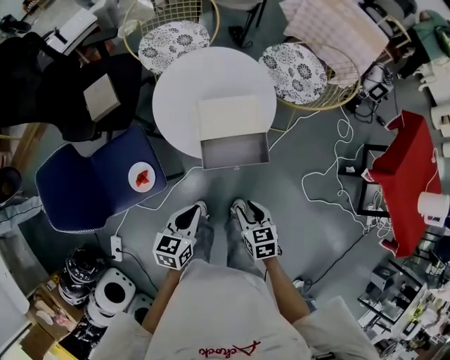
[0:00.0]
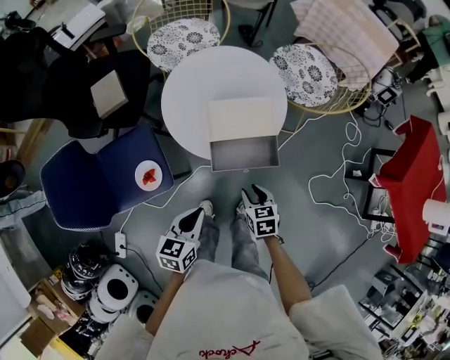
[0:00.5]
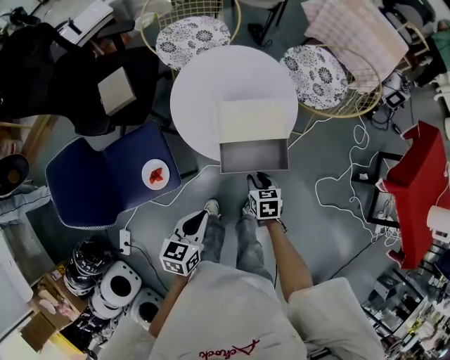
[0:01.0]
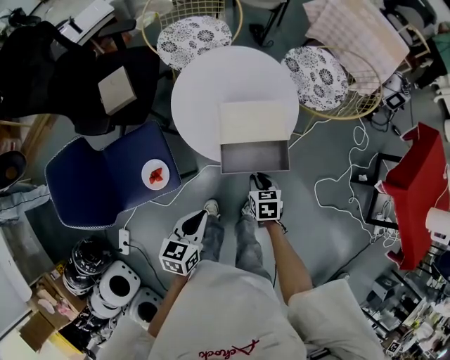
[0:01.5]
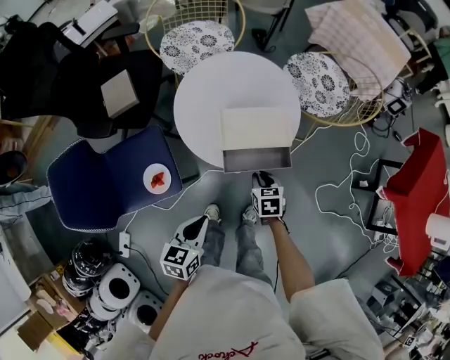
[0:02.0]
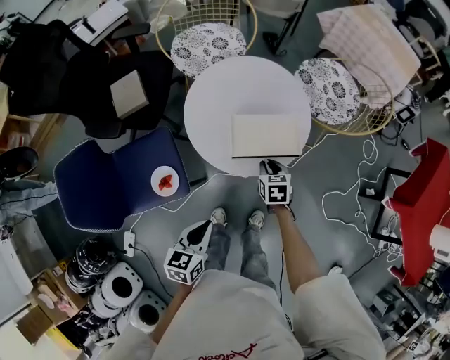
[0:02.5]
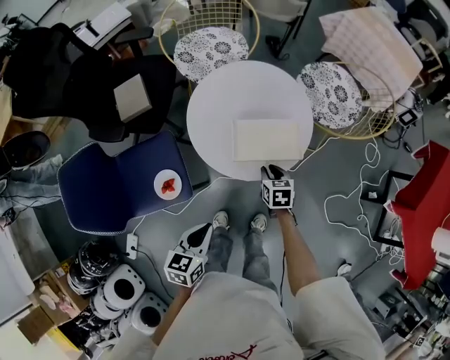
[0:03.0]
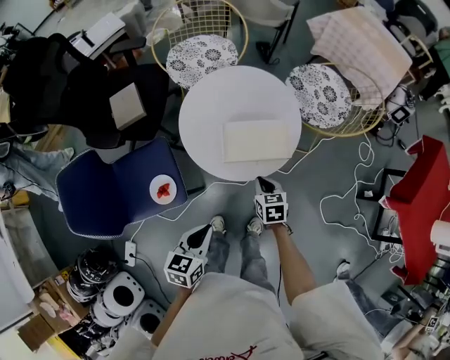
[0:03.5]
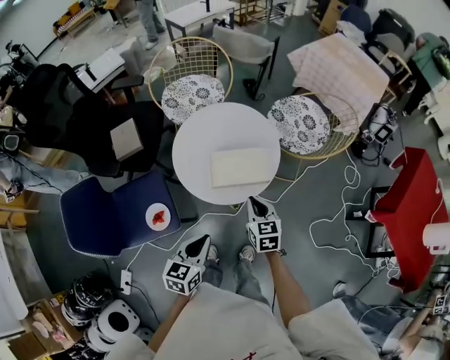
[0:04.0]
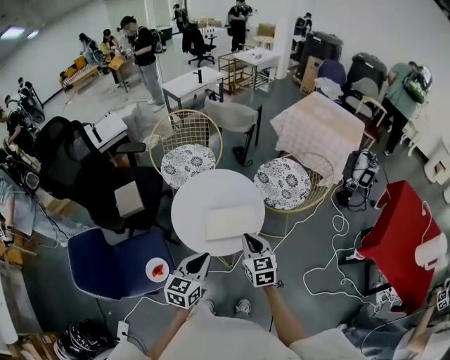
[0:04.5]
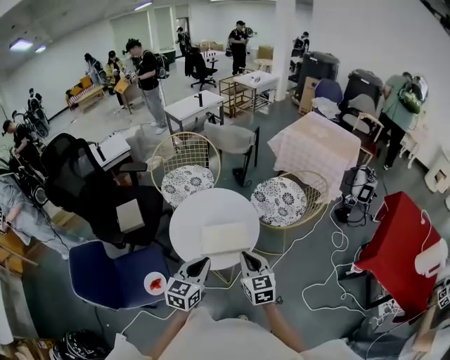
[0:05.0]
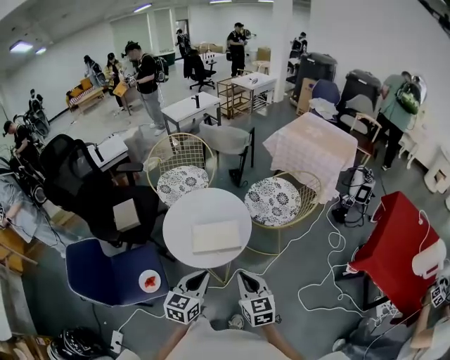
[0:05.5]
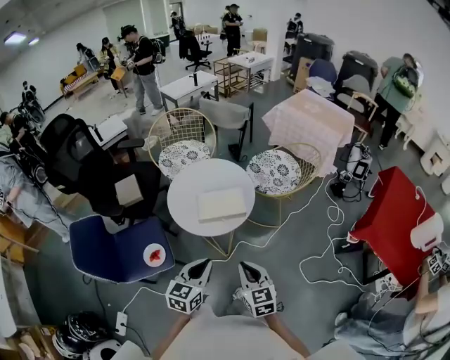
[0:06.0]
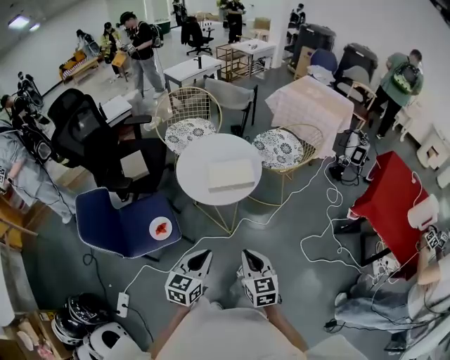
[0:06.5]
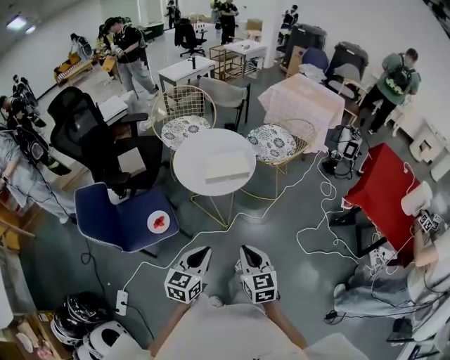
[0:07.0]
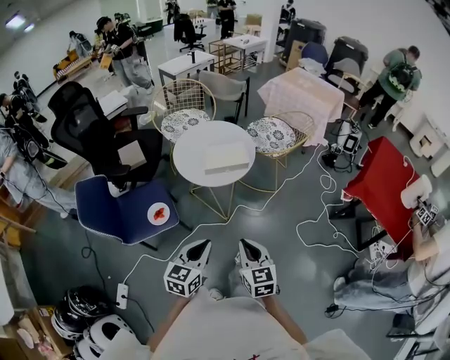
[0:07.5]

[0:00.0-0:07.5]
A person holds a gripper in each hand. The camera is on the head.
0:00.0 to 0:02.0: The right gripper shifts approximately 15 cm forward and downward.
0:02.0 to 0:04.0: The right gripper goes approximately 15 cm upward, and turns by approximately 20 degrees. Meanwhile the left gripper moves upward, approximately 5 cm.
0:04.0 to 0:05.5: The right gripper goes roughly 20 cm upward, backward and to the right. Meanwhile the left gripper travels to the right and upward by approximately 15 cm.
0:05.5 to 0:07.5: Both grippers move backward, some 25 cm.

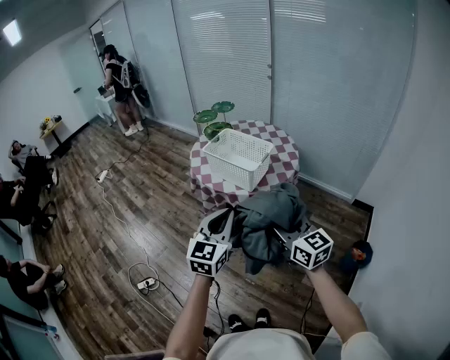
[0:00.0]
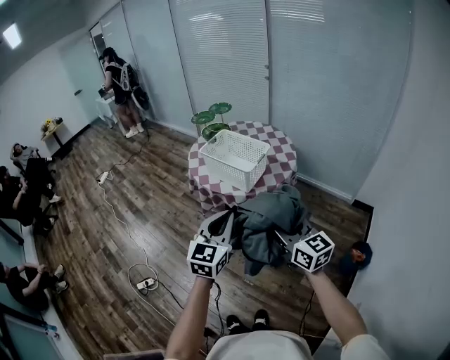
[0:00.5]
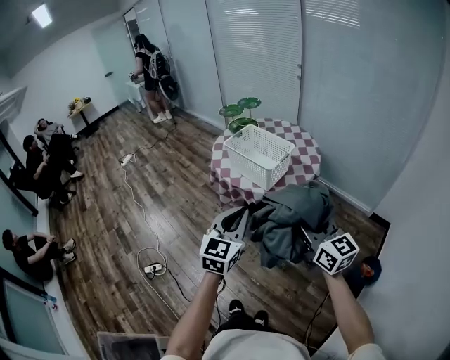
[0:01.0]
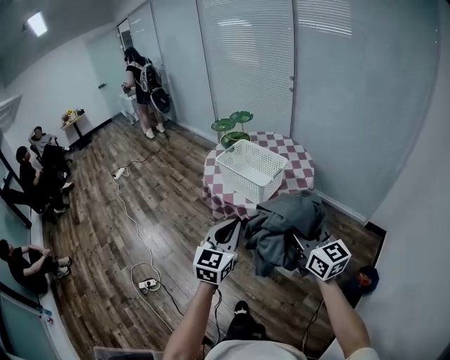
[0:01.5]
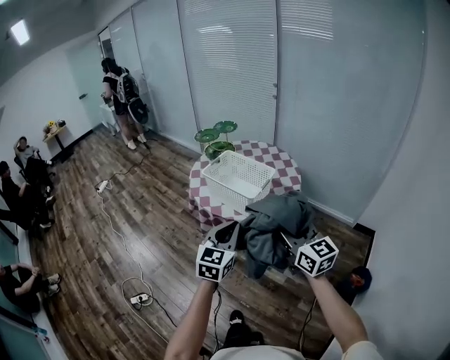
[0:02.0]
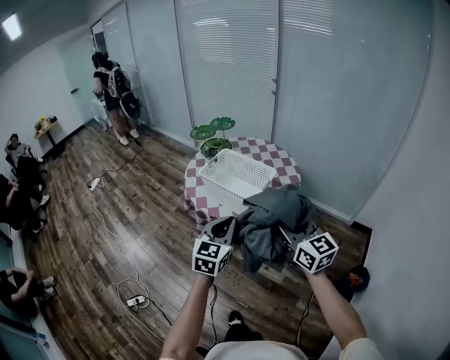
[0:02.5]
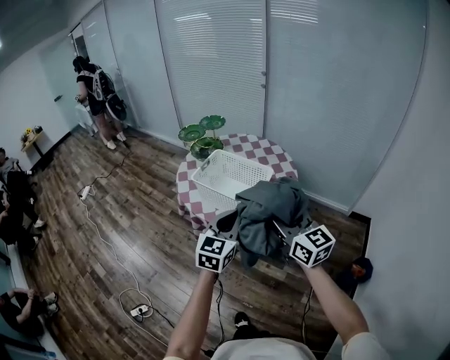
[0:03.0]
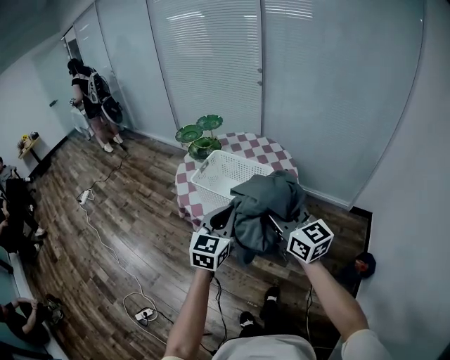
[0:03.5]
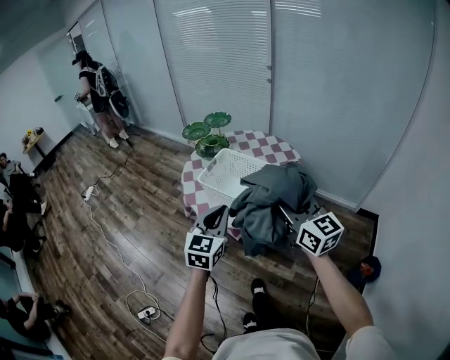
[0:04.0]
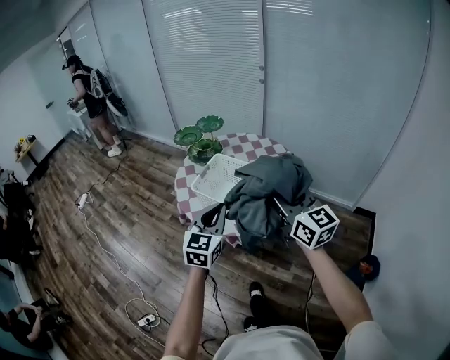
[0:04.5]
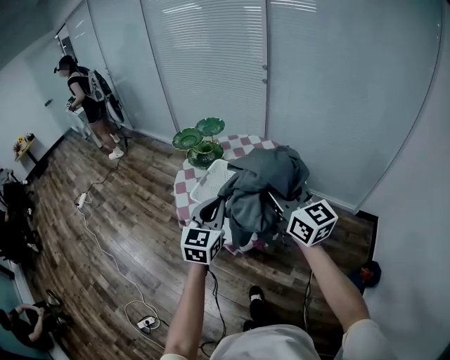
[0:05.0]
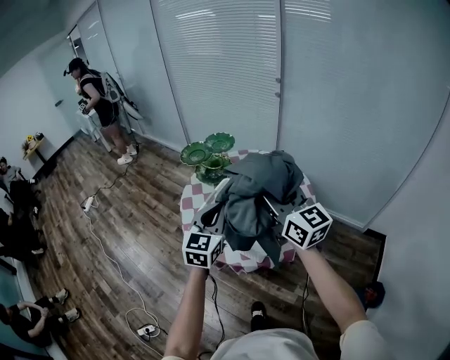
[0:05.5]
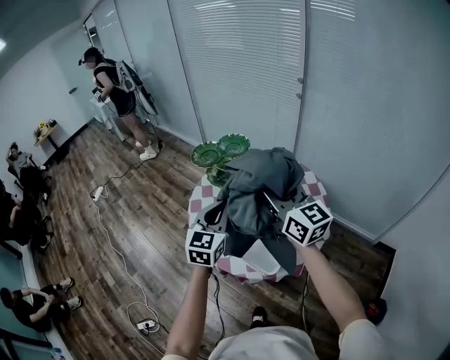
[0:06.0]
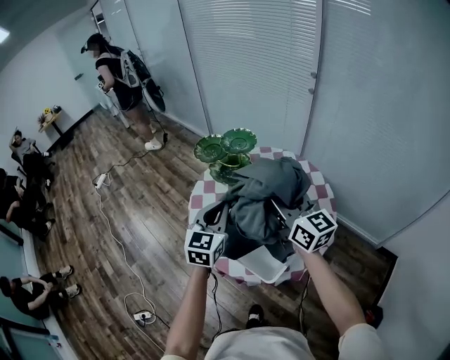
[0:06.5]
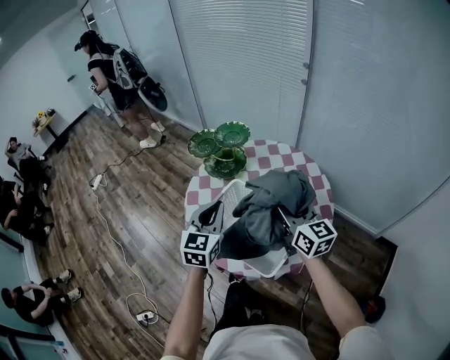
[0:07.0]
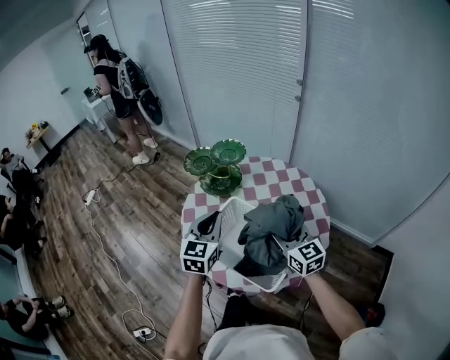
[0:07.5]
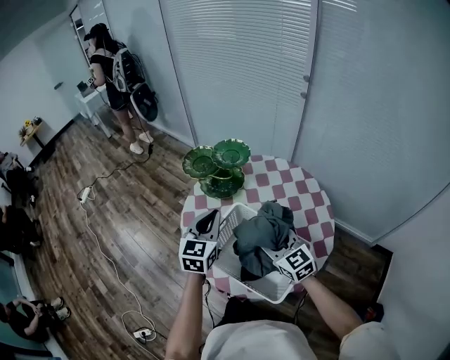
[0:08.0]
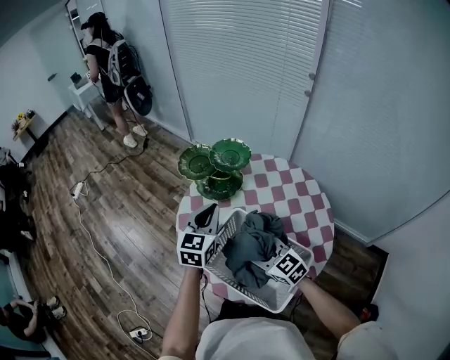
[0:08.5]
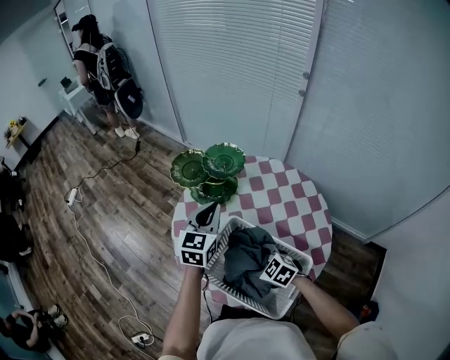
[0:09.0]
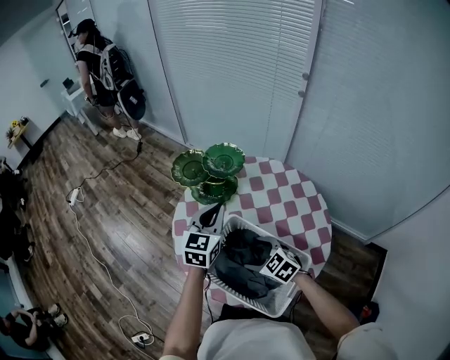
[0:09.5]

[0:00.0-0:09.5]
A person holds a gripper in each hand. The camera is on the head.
0:00.0 to 0:02.0: The right gripper travels forward and to the right by approximately 10 cm; the left gripper goes some 10 cm forward.
0:02.0 to 0:04.0: The right gripper heads forward, covering approximately 15 cm, while the left gripper travels forward and to the left by some 20 cm.
0:04.0 to 0:05.5: Both grippers move forward, about 20 cm.
0:05.5 to 0:07.5: The right gripper moves downward and forward, some 25 cm. Meanwhile the left gripper travels forward and downward by approximately 15 cm.
0:07.5 to 0:09.5: The left gripper shifts about 15 cm forward; the right gripper shifts approximately 15 cm downward and to the left, points its fingers approximately 30 degrees further downward, and opens.

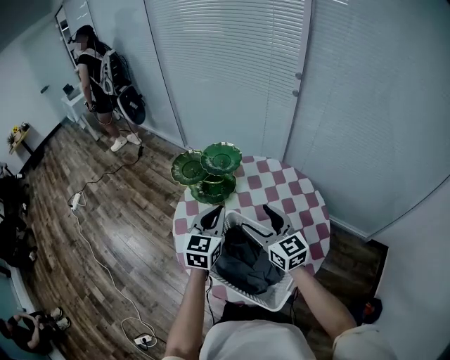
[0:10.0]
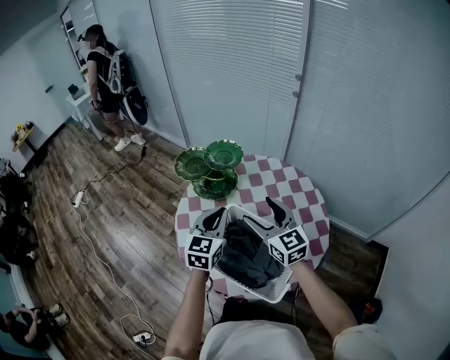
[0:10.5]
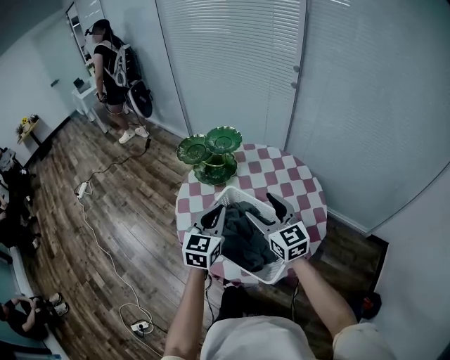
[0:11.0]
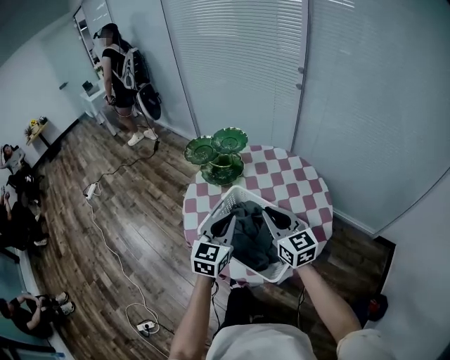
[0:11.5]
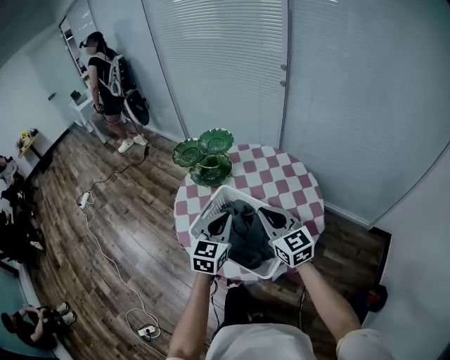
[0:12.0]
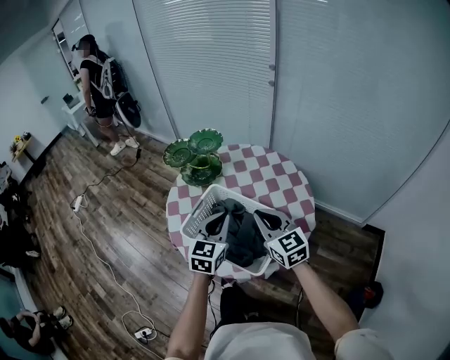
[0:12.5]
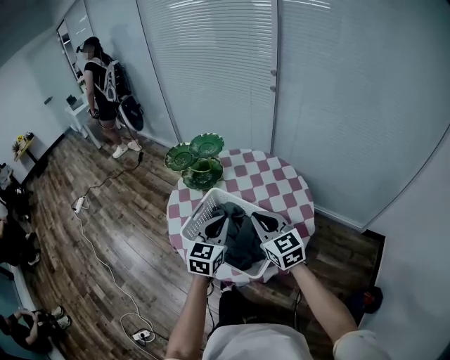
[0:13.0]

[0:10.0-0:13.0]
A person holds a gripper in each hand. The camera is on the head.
0:10.0 to 0:11.5: Both grippers travel together backward, roughly 10 cm. The right gripper closes.
0:11.5 to 0:13.0: The left gripper moves about 5 cm.

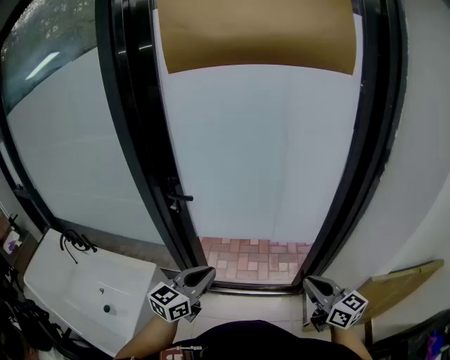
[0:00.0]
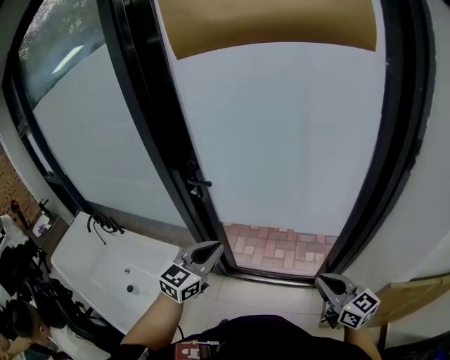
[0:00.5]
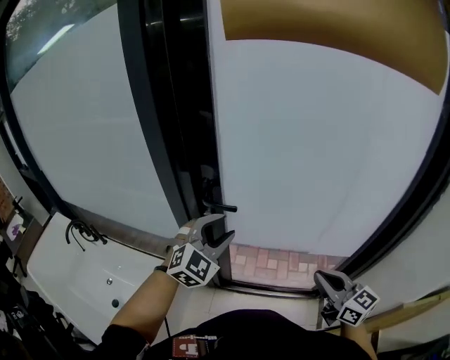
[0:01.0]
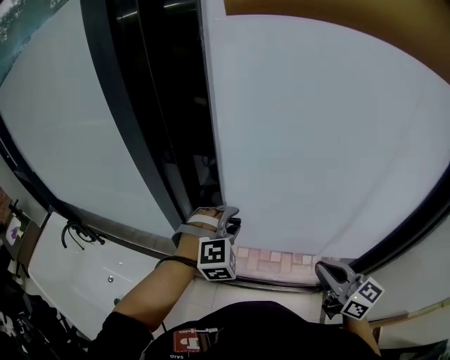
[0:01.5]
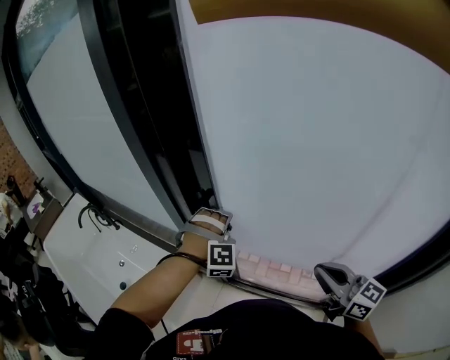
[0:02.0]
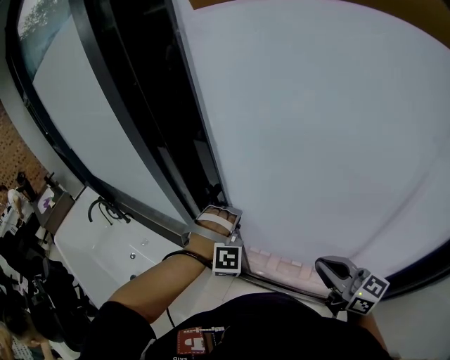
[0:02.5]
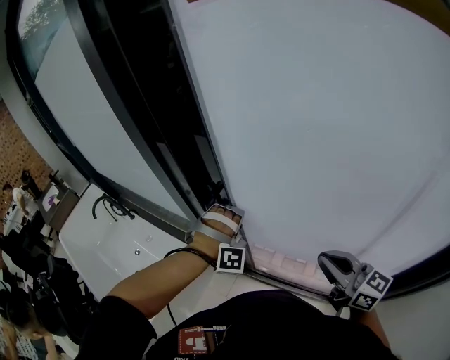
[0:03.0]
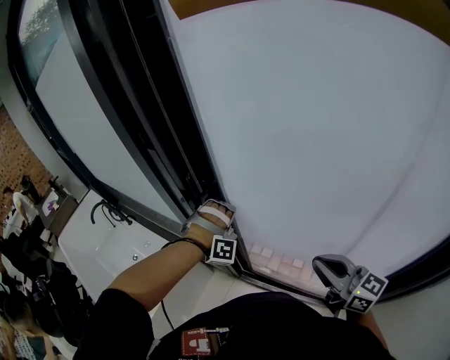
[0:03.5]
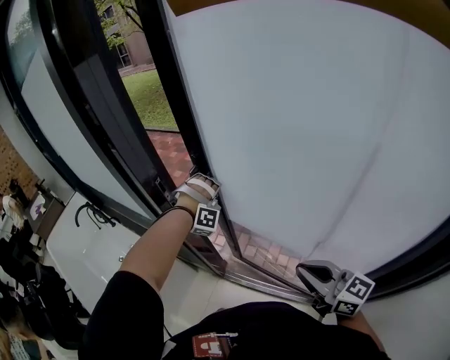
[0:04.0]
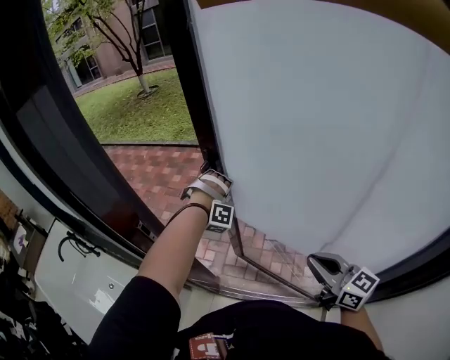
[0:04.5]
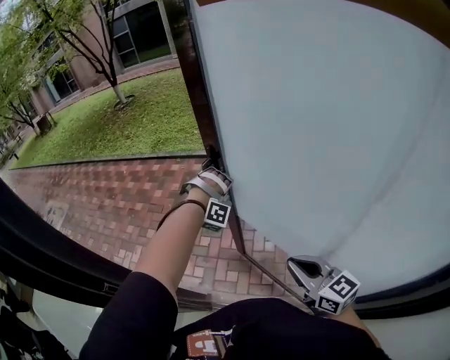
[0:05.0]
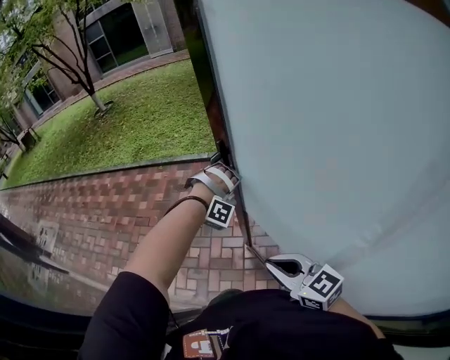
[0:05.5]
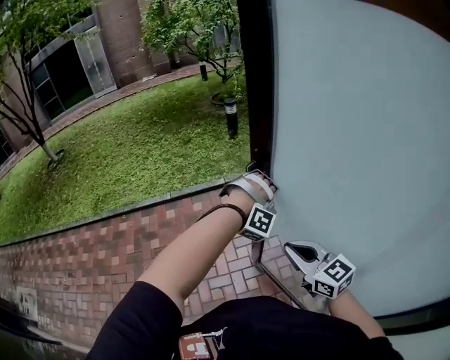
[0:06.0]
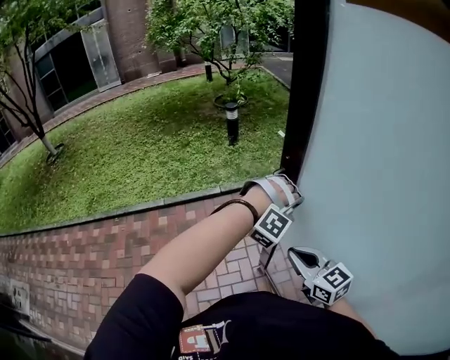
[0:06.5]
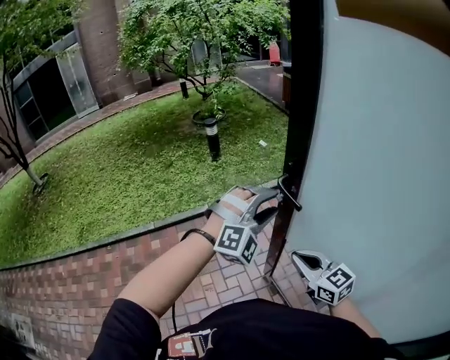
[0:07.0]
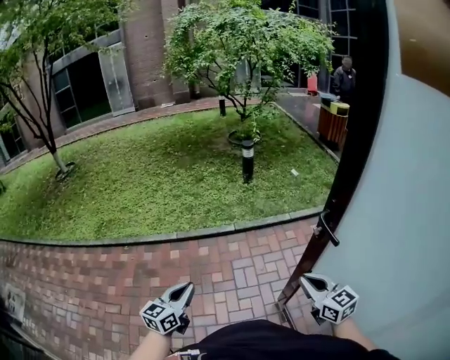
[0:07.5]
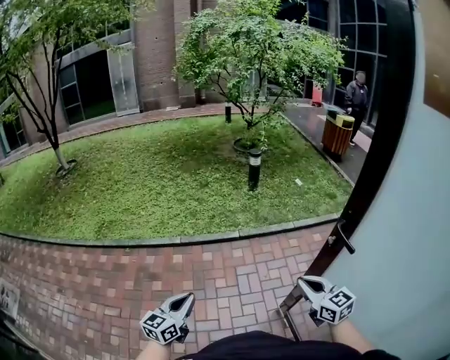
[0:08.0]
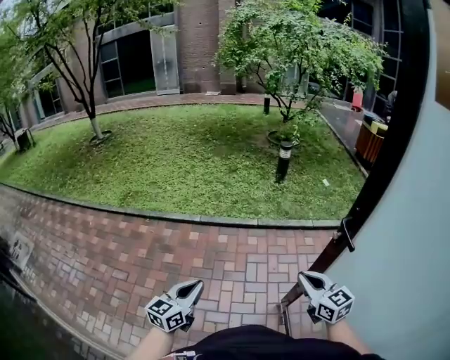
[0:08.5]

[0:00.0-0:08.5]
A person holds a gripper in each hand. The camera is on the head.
0:00.0 to 0:02.0: The right gripper changes place by some 30 cm, and changes its angle by approximately 20 degrees. Meanwhile the left gripper ends up roughly 40 cm from where it was, rotates approximately 110 degrees, and opens its fingers.
0:02.0 to 0:04.0: The left gripper travels forward and to the right by roughly 15 cm, and closes up.
0:04.0 to 0:06.5: The two grippers travel together, approximately 70 cm. The right gripper turns by some 50 degrees; the left gripper swivels about 70 degrees.
0:06.5 to 0:08.5: The left gripper is displaced to the left by some 40 cm, rolls counterclockwise, seen from behind, by some 120 degrees, and opens, then closes again. The right gripper moves to the left, some 10 cm.
